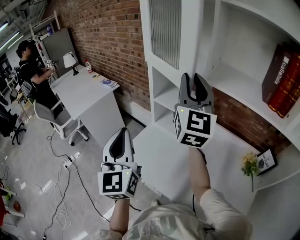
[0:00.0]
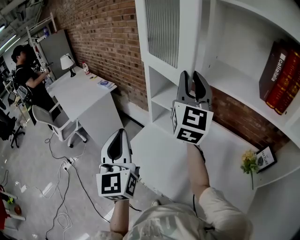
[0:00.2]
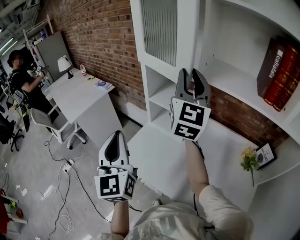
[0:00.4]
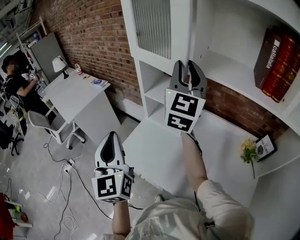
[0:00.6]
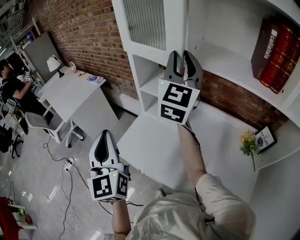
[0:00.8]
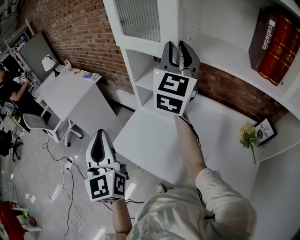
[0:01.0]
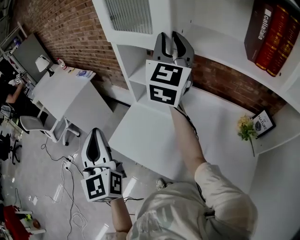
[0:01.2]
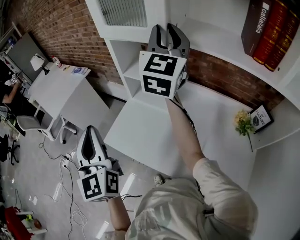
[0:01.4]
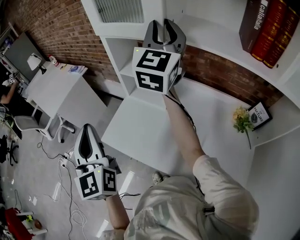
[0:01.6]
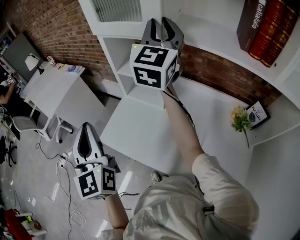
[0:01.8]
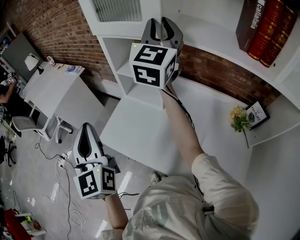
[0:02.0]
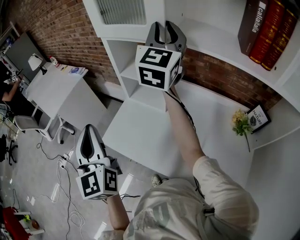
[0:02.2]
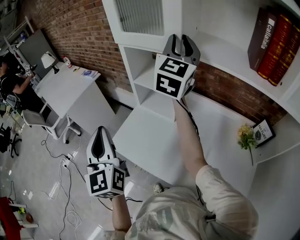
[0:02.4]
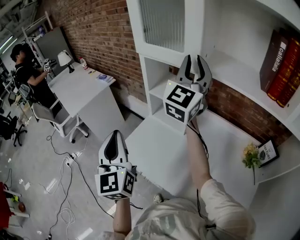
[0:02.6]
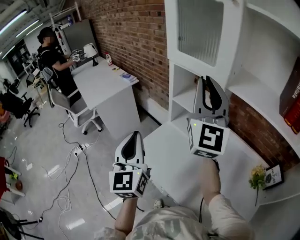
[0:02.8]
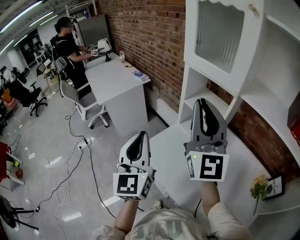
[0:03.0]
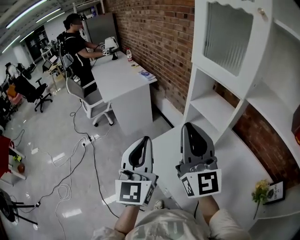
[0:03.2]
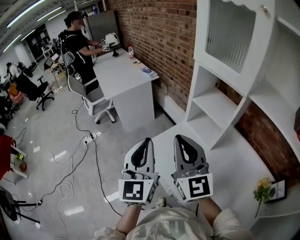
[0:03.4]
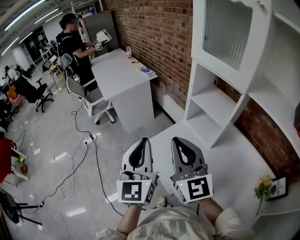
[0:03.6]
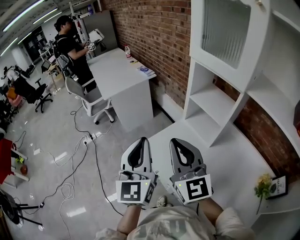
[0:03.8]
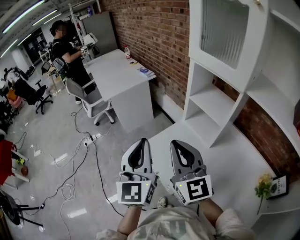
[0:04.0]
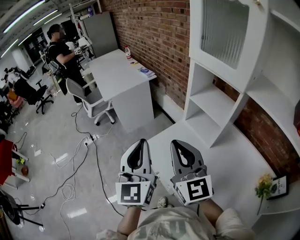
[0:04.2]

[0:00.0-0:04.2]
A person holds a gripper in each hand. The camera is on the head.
0:00.0 to 0:01.4: The right gripper moves forward, roughly 5 cm.
0:01.4 to 0:02.8: The right gripper travels backward and to the left by some 10 cm, and swivels some 20 degrees.
0:02.8 to 0:04.2: The left gripper shifts by roughly 5 cm, while the right gripper shifts approximately 25 cm downward, to the left and backward, and changes its angle by approximately 40 degrees.

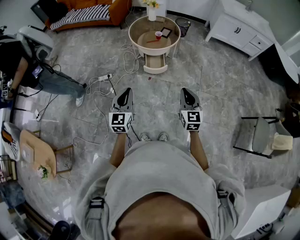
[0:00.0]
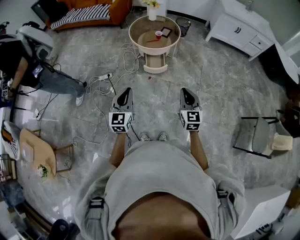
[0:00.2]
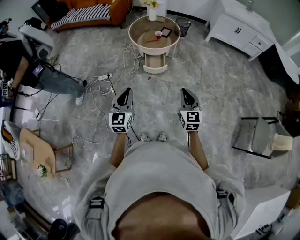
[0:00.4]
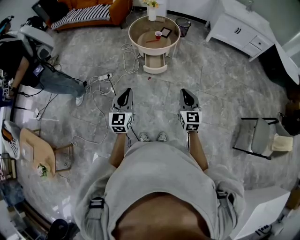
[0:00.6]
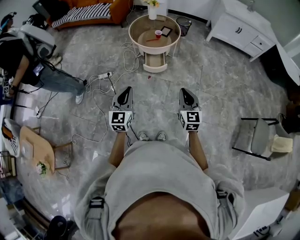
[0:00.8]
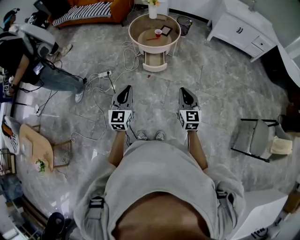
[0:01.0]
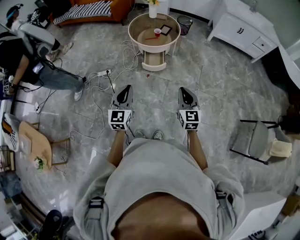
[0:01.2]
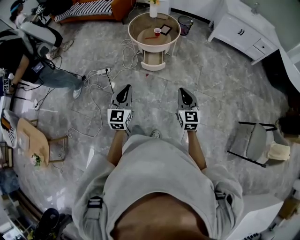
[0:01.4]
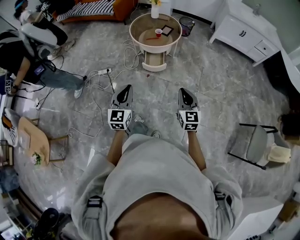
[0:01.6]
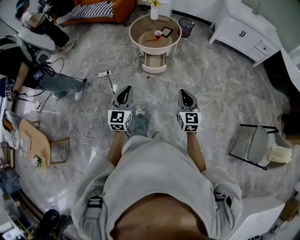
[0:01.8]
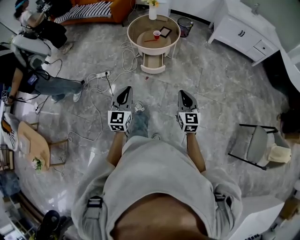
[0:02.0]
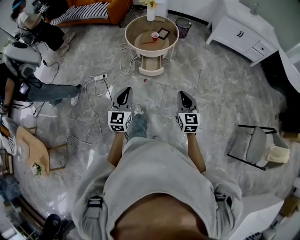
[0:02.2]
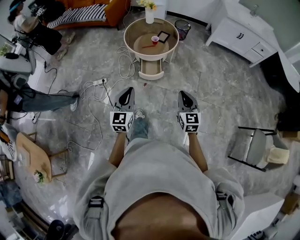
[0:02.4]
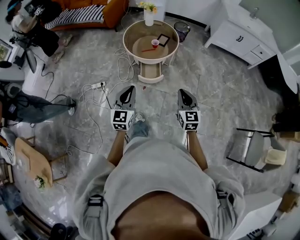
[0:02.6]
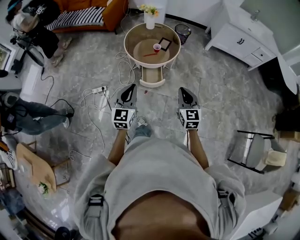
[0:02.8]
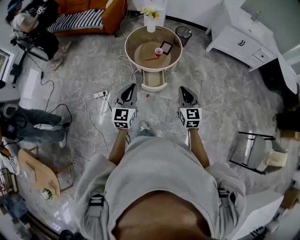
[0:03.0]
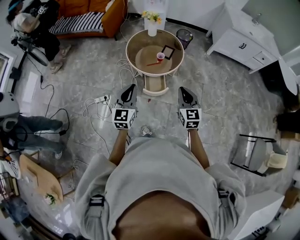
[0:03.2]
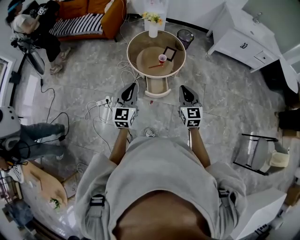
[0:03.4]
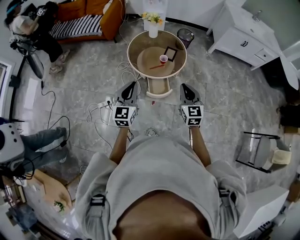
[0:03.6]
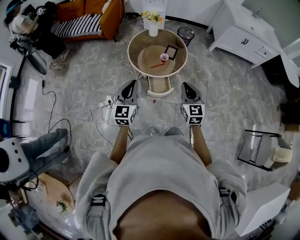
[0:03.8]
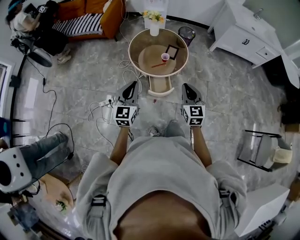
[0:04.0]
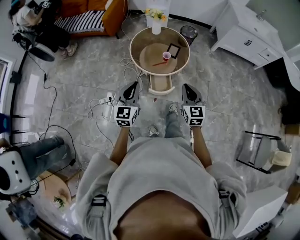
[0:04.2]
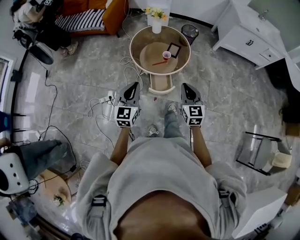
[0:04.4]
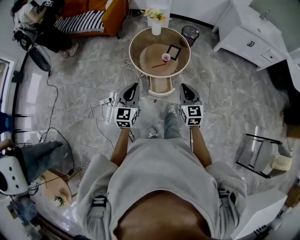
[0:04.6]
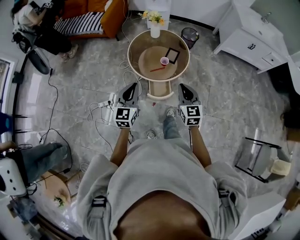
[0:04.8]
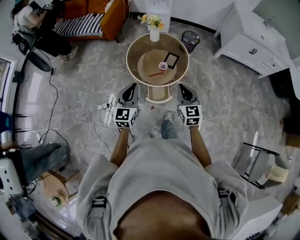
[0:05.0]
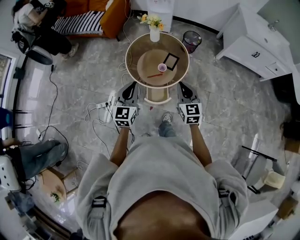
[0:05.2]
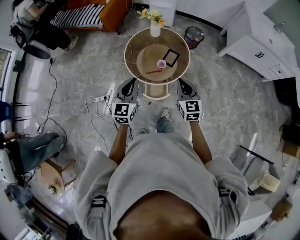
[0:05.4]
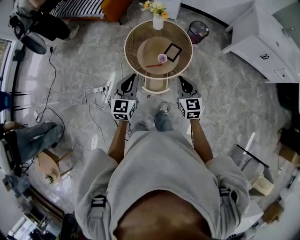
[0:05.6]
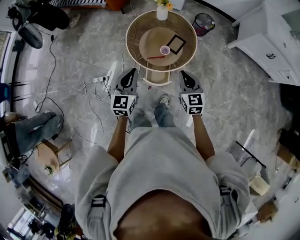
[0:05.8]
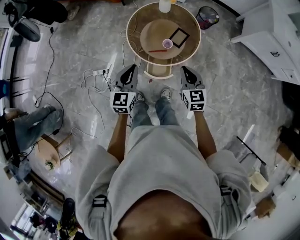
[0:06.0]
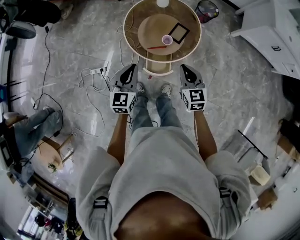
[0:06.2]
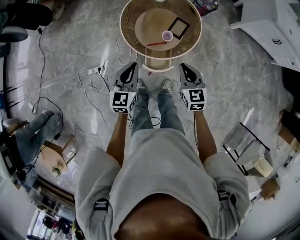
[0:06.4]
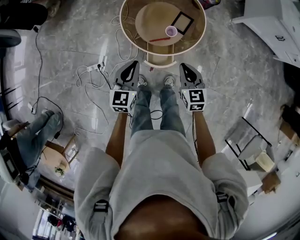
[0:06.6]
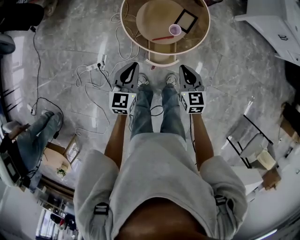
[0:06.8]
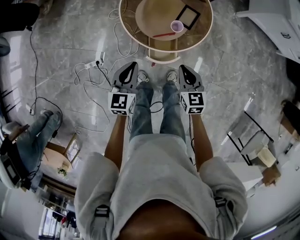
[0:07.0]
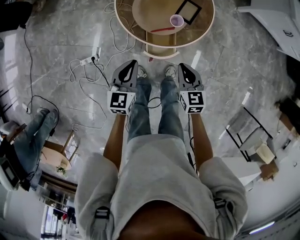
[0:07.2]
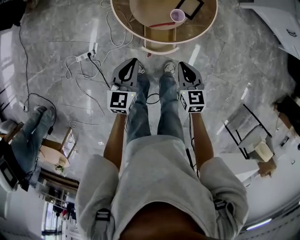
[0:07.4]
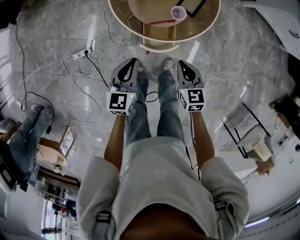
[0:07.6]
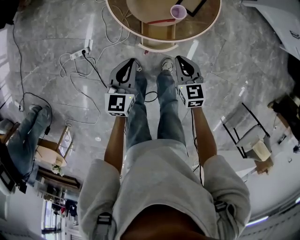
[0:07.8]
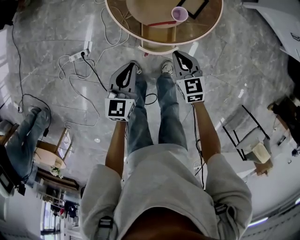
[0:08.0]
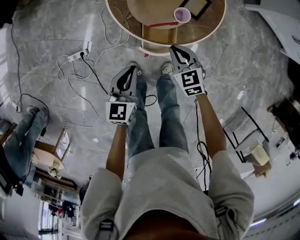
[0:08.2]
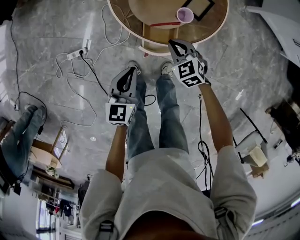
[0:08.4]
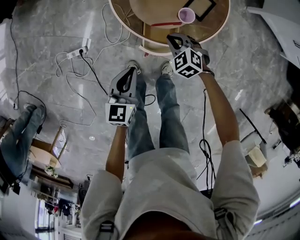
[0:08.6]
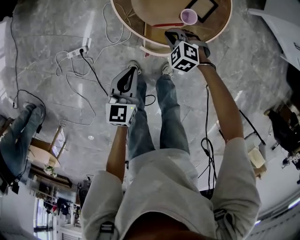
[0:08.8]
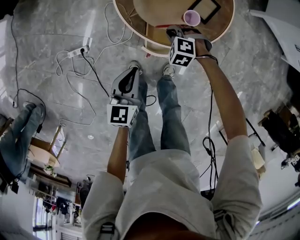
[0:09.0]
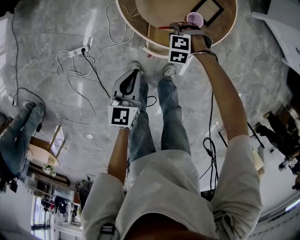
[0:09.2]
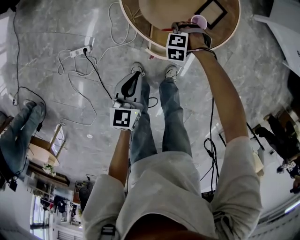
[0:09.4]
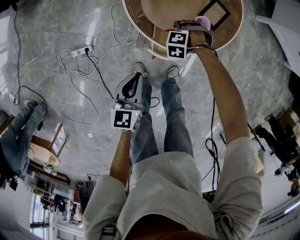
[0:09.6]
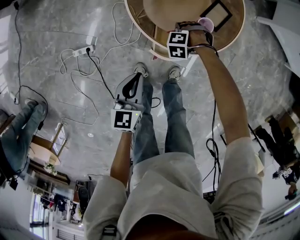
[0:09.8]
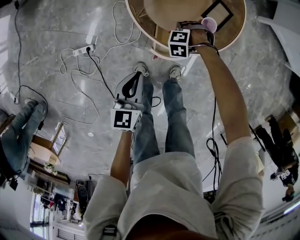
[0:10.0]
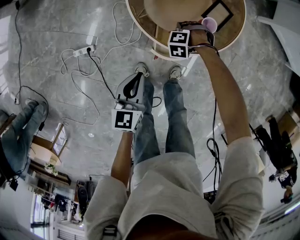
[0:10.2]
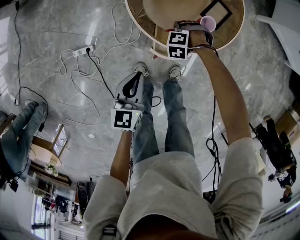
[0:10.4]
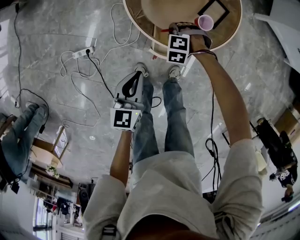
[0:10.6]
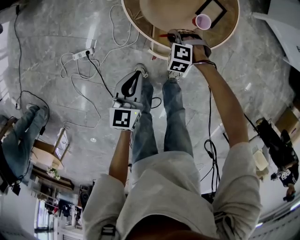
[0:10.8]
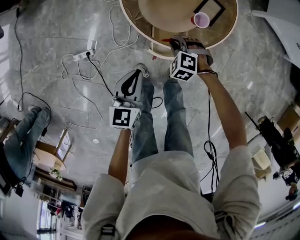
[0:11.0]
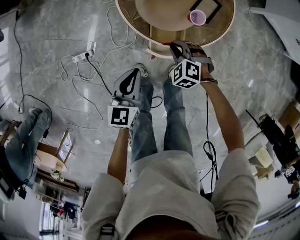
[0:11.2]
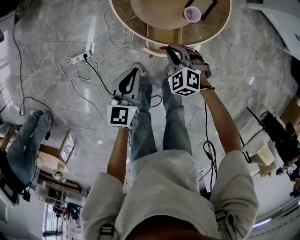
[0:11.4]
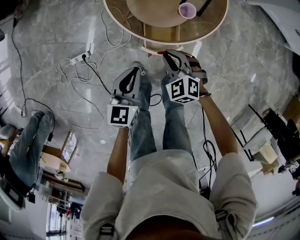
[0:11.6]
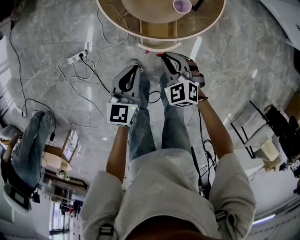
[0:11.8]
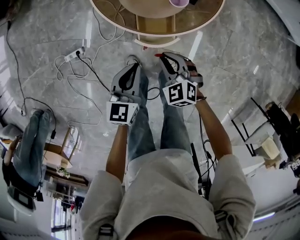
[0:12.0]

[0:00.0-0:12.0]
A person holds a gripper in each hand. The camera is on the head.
0:00.0 to 0:01.6: Both grippers travel together to the right, about 10 cm.
0:01.6 to 0:03.0: The left gripper shifts approximately 30 cm forward. The right gripper is displaced forward and to the left by approximately 30 cm.
0:03.0 to 0:04.4: Both grippers move forward and to the left, about 10 cm.
0:04.4 to 0:06.0: The left gripper heads forward and to the right, covering roughly 20 cm. The right gripper shifts about 20 cm forward.
0:06.0 to 0:07.6: Both grippers move downward, some 25 cm.
0:07.6 to 0:09.0: The left gripper shifts some 5 cm downward. Meanwhile the right gripper is displaced downward by roughly 15 cm, and rotates around the line of its fingers by some 70 degrees, counterclockwise from behind.
0:09.0 to 0:10.4: The right gripper swivels approximately 20 degrees.
0:10.4 to 0:12.0: The right gripper shifts by approximately 20 cm, and points its fingers some 30 degrees further upward; the left gripper shifts by some 10 cm.

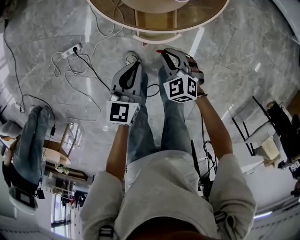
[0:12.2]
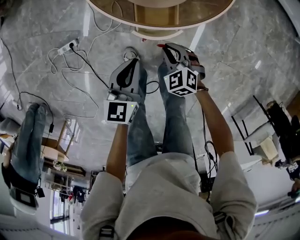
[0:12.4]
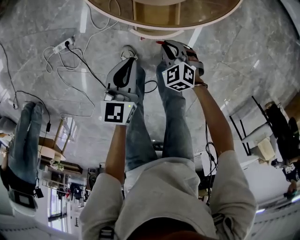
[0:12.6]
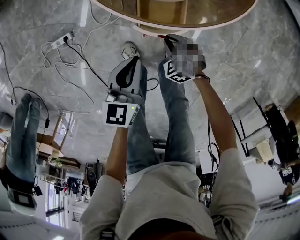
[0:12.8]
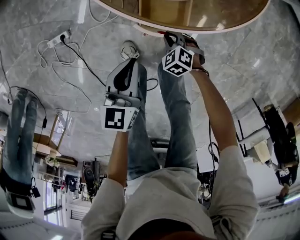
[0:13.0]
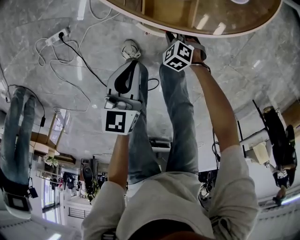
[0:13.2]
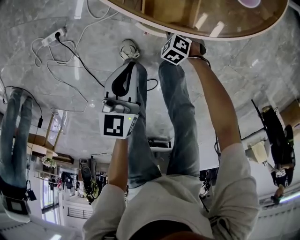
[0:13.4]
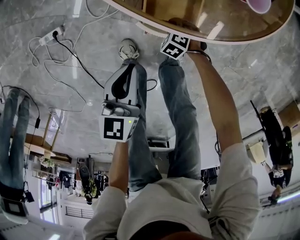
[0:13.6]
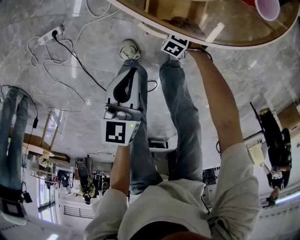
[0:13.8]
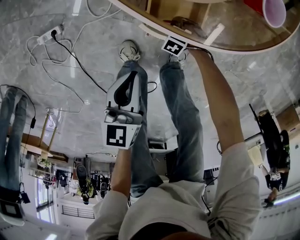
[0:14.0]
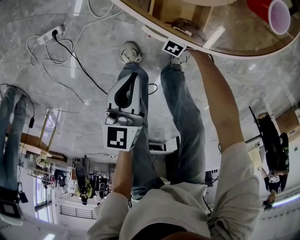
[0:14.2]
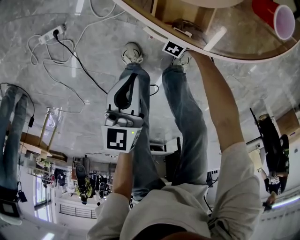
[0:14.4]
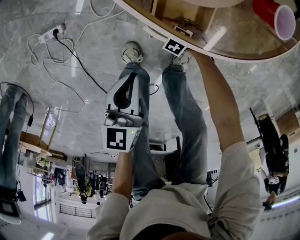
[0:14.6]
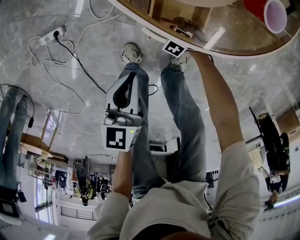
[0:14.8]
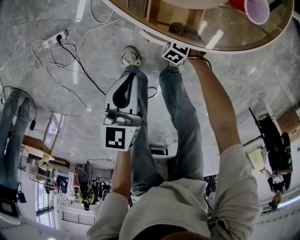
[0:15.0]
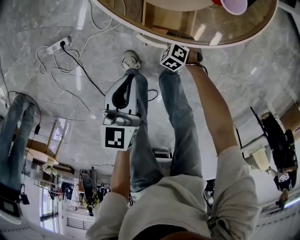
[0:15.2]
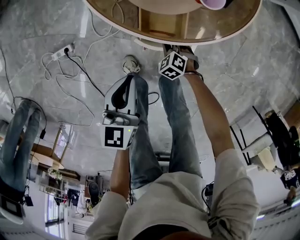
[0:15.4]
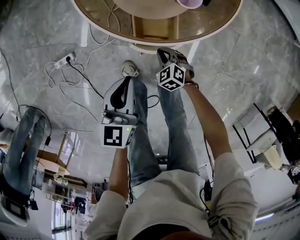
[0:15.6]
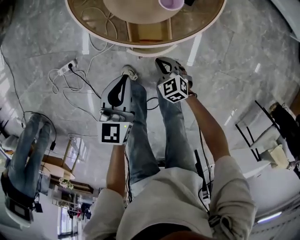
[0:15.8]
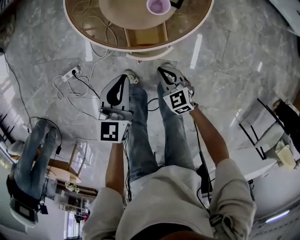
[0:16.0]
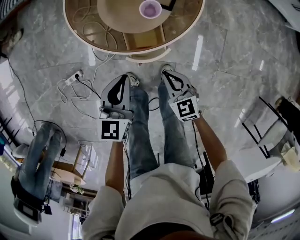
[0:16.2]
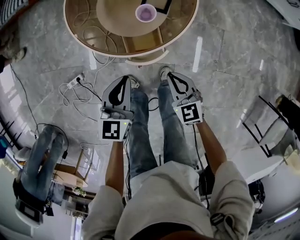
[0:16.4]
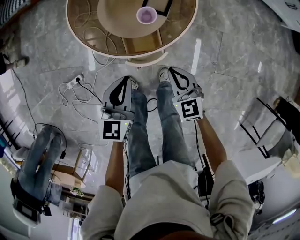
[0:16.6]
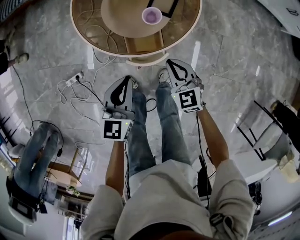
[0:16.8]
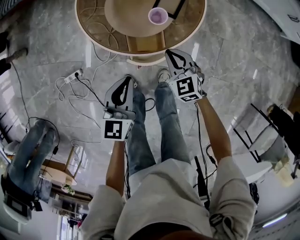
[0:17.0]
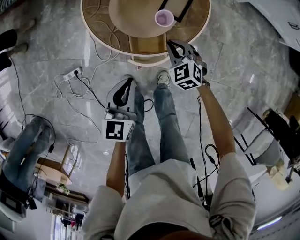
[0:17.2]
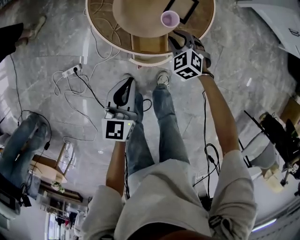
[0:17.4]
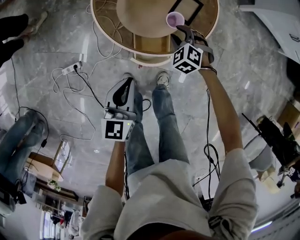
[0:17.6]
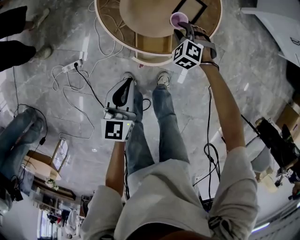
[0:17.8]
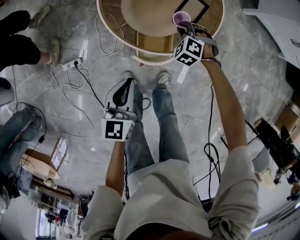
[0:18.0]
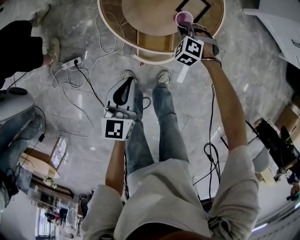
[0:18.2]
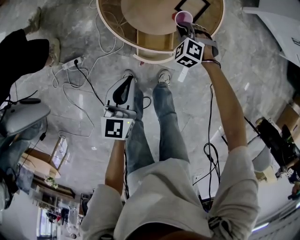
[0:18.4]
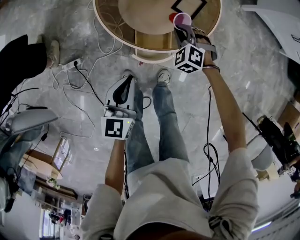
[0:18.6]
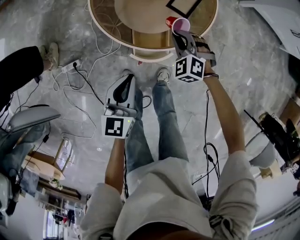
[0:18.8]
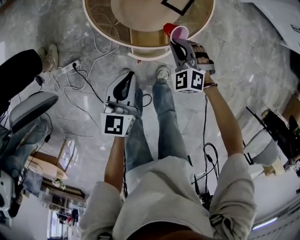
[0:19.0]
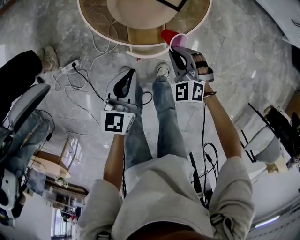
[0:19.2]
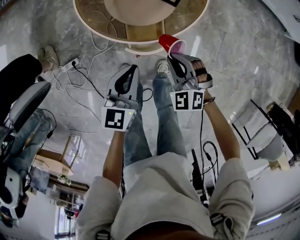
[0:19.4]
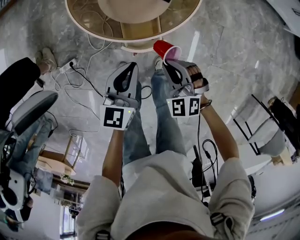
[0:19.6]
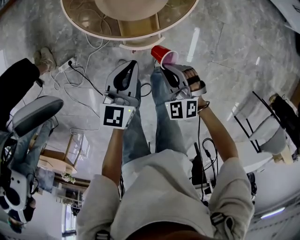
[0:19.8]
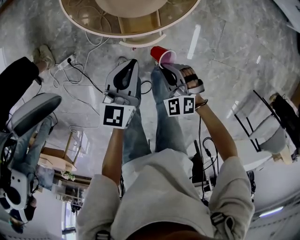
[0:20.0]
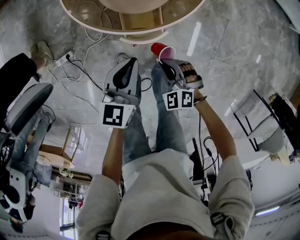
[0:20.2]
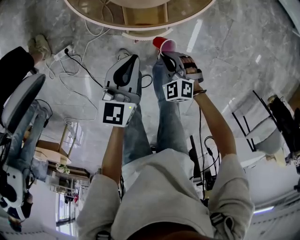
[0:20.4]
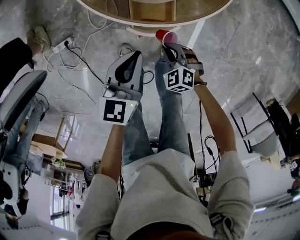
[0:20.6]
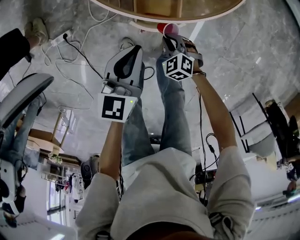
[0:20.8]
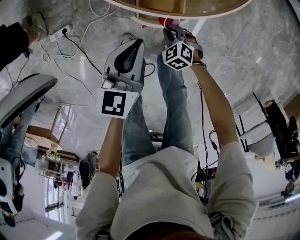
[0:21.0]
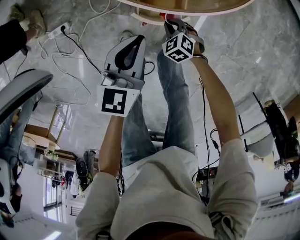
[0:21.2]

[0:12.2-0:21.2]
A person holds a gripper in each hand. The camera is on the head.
0:12.2 to 0:13.8: The left gripper goes roughly 15 cm downward. The right gripper shifts about 35 cm downward, and points its fingers some 30 degrees further downward.
0:13.8 to 0:15.2: Both grippers move upward, some 5 cm. The right gripper opens, then closes again.
0:15.2 to 0:16.6: The right gripper goes about 40 cm upward, and angles its fingers upward, by roughly 40 degrees, while the left gripper heads upward, covering some 15 cm, and rotates about 20 degrees.
0:16.6 to 0:18.2: The right gripper moves forward and downward, roughly 20 cm, rotates around the line of its fingers by some 60 degrees, counterclockwise from behind, and opens, then closes again. Meanwhile the left gripper heads to the left, covering some 10 cm.
0:18.2 to 0:19.8: The left gripper moves to the right, some 15 cm. The right gripper moves backward, approximately 25 cm, and changes its angle by about 30 degrees.
0:19.8 to 0:21.2: The left gripper heads downward and to the left, covering approximately 15 cm; the right gripper is displaced downward by approximately 25 cm, and swivels about 30 degrees.
